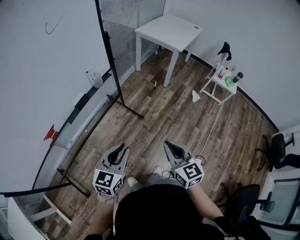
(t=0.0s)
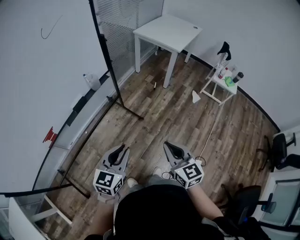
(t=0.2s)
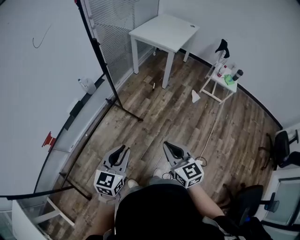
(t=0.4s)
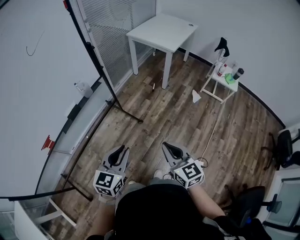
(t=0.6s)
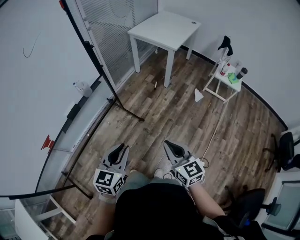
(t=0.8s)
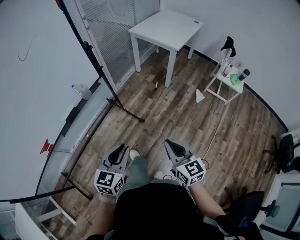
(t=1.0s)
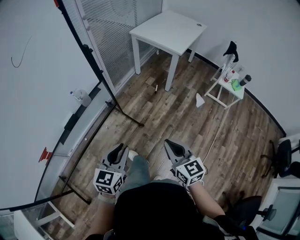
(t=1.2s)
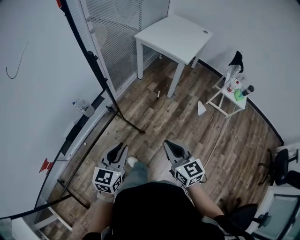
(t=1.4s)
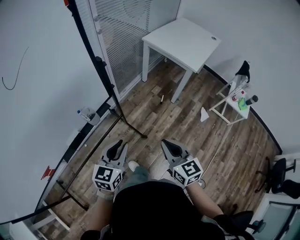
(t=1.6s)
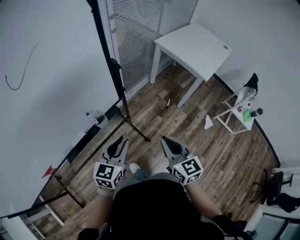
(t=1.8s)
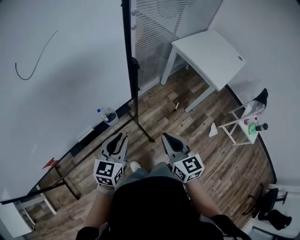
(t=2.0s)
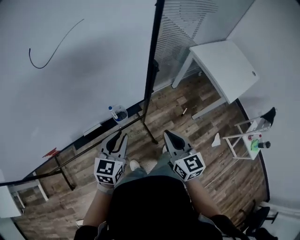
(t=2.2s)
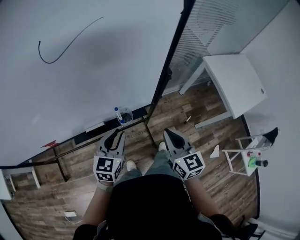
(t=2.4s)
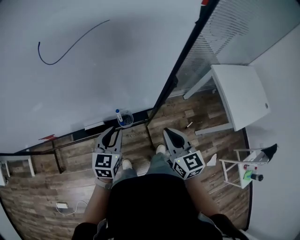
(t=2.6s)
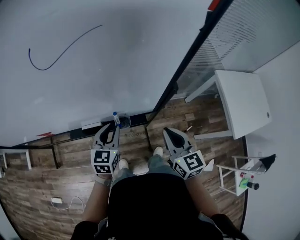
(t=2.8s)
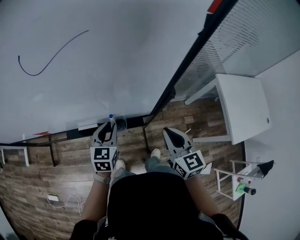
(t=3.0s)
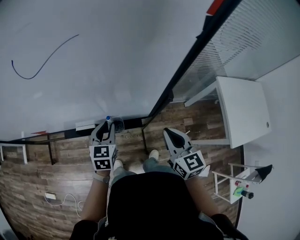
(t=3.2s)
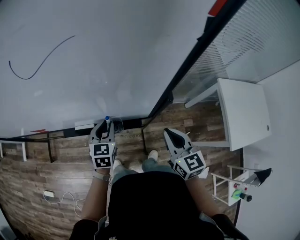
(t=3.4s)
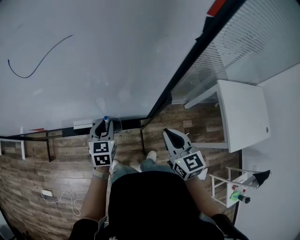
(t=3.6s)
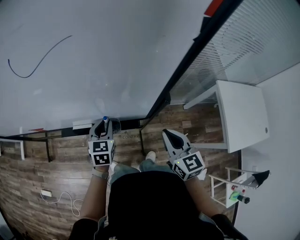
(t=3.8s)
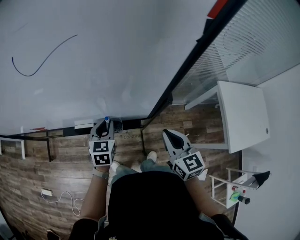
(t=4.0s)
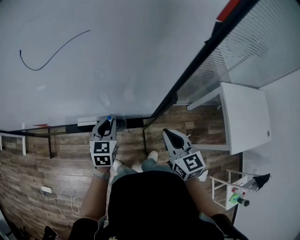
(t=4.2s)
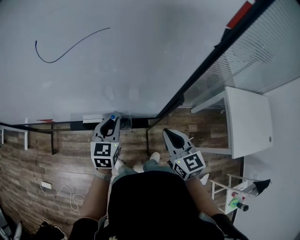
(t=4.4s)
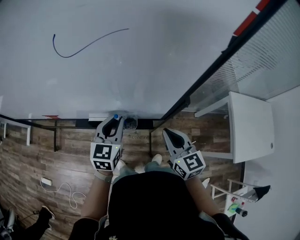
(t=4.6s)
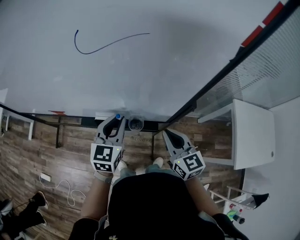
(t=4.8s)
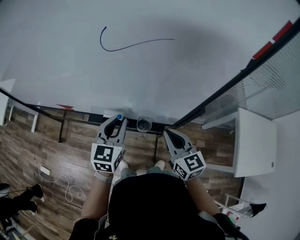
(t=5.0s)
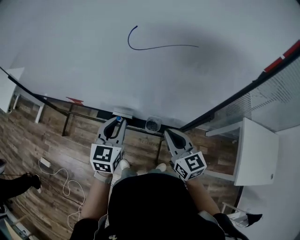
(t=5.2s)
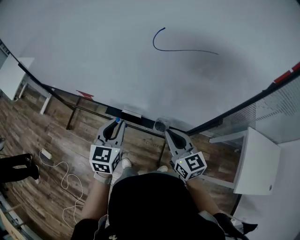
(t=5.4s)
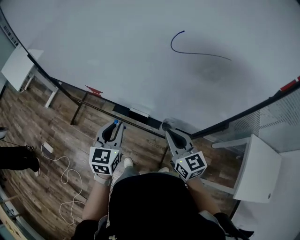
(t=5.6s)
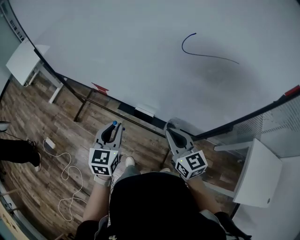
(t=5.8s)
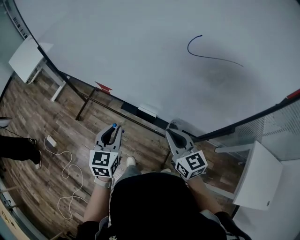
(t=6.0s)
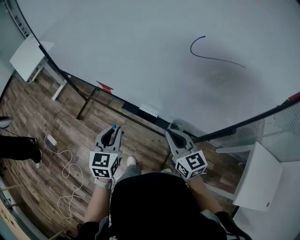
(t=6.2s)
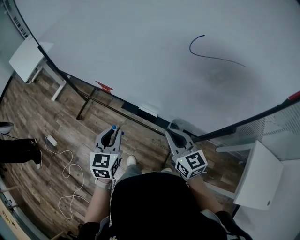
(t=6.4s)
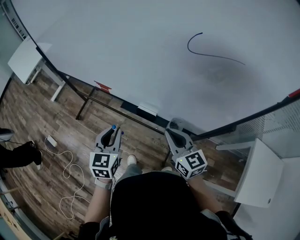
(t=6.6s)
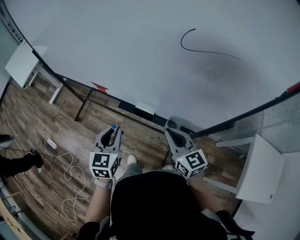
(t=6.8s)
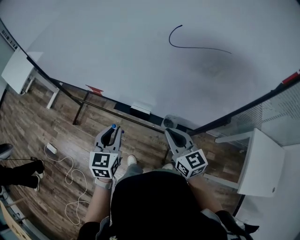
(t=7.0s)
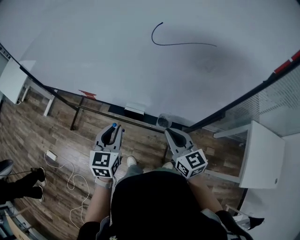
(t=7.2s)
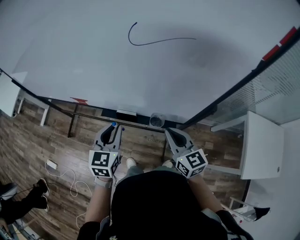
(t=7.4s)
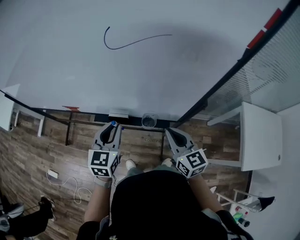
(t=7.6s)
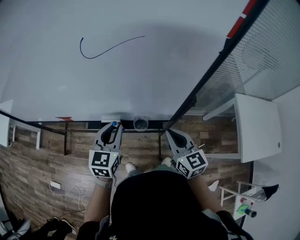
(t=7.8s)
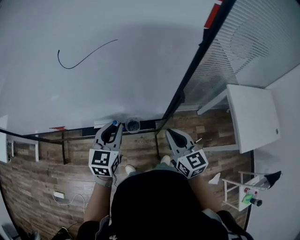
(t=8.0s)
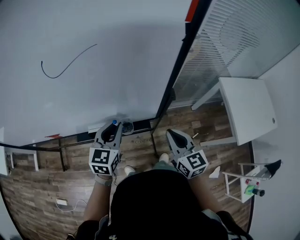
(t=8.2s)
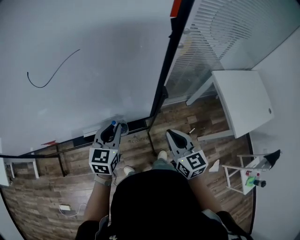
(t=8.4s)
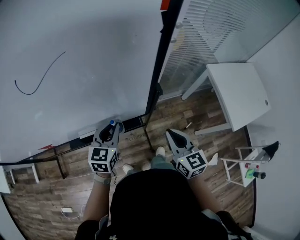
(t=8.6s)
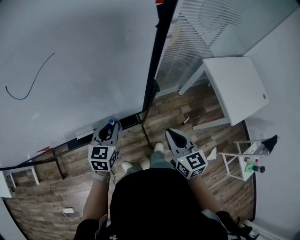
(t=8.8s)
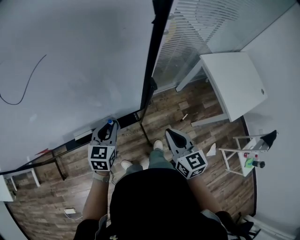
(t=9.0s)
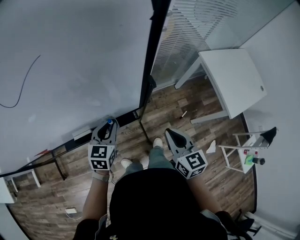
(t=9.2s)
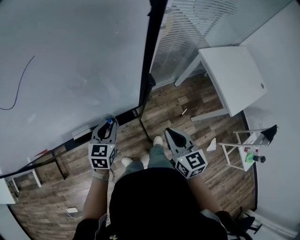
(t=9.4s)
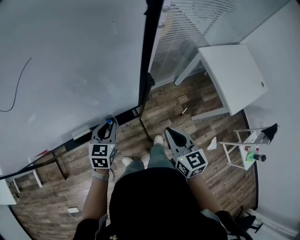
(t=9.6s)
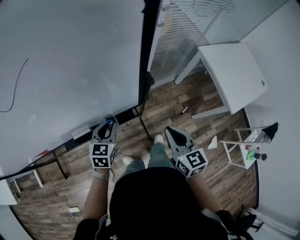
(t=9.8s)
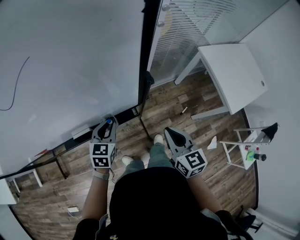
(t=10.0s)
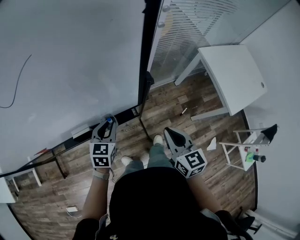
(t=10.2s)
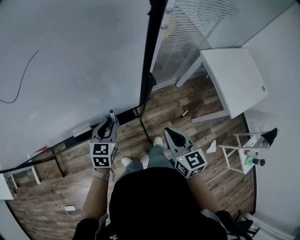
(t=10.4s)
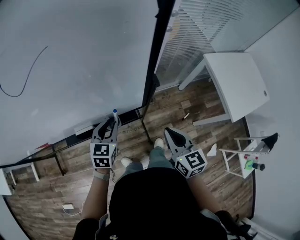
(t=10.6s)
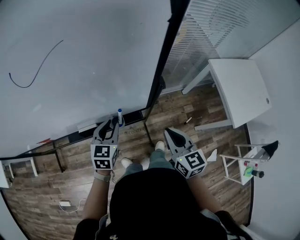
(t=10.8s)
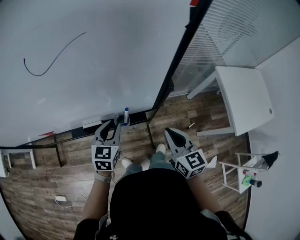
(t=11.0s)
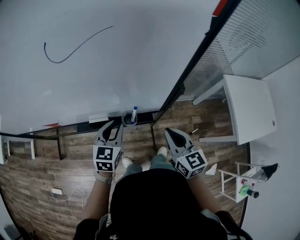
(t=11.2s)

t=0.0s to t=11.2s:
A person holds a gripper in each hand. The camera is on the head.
t=0.0s to t=1.6s: Both grippers travel together forward, some 30 cm.
t=1.6s to t=3.2s: The right gripper ends up approximately 30 cm from where it was, and turns by approximately 40 degrees. The left gripper changes place by about 25 cm, and changes its angle by about 60 degrees.
t=3.2s to t=4.8s: The right gripper is displaced to the left by approximately 10 cm, while the left gripper shifts roughly 10 cm upward.
t=4.8s to t=6.4s: The right gripper shifts by approximately 15 cm, and turns by some 20 degrees; the left gripper ends up approximately 25 cm from where it was, and rotates approximately 30 degrees.
t=6.4s to t=8.0s: The left gripper shifts by some 25 cm, and changes its angle by some 30 degrees. The right gripper changes place by some 20 cm, and turns by some 30 degrees.
t=8.0s to t=9.6s: The left gripper heads downward and to the right, covering approximately 15 cm, and changes its angle by roughly 20 degrees; the right gripper shifts about 10 cm to the right, and changes its angle by about 20 degrees.
t=9.6s to t=11.2s: The left gripper shifts about 10 cm to the left and upward. Meanwhile the right gripper is displaced to the left by roughly 10 cm.

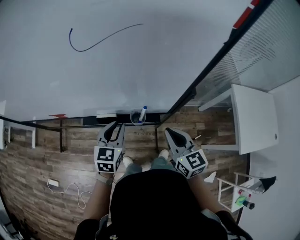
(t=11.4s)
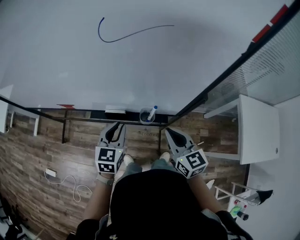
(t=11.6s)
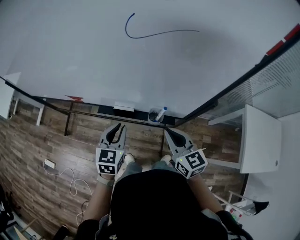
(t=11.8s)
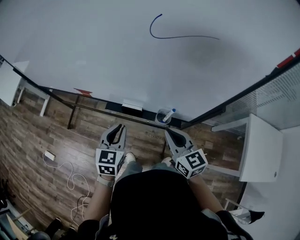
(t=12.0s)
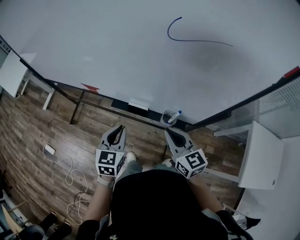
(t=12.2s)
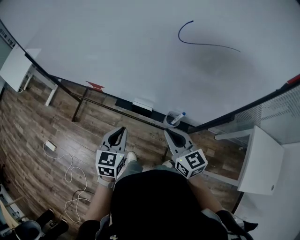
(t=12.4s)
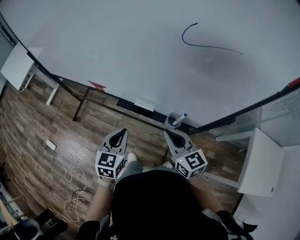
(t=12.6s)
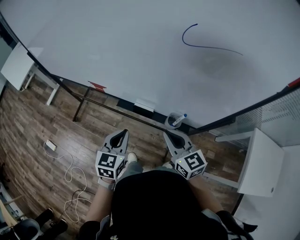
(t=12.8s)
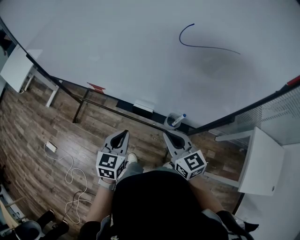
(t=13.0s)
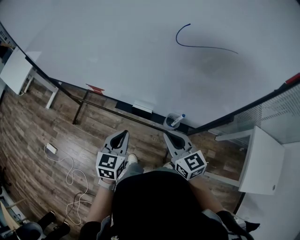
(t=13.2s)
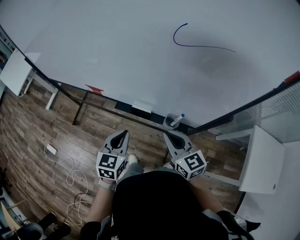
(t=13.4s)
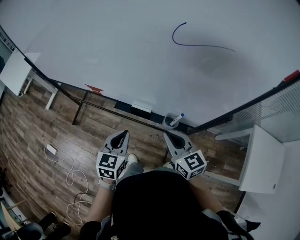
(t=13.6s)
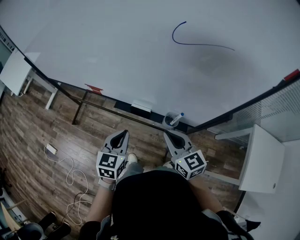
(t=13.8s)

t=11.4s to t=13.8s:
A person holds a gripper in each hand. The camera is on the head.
t=11.4s to t=12.6s: Both grippers move to the left, roughly 15 cm. The right gripper swivels some 30 degrees.
t=12.6s to t=13.8s: The grippers stay close to where they were, moving slightly.

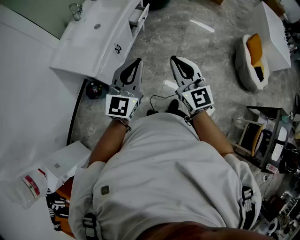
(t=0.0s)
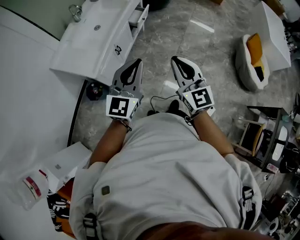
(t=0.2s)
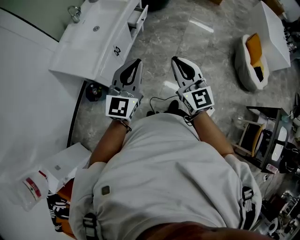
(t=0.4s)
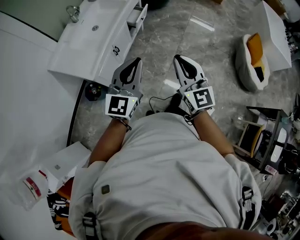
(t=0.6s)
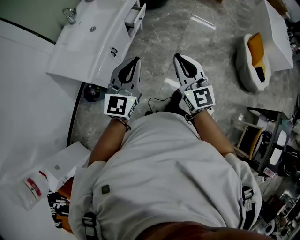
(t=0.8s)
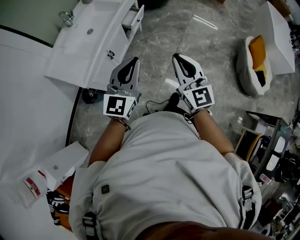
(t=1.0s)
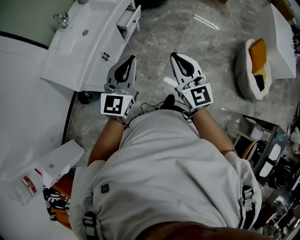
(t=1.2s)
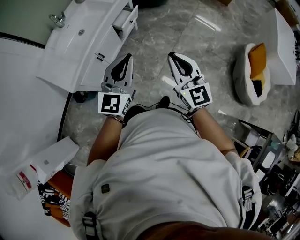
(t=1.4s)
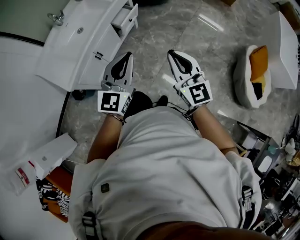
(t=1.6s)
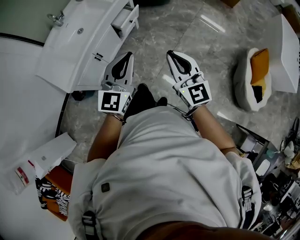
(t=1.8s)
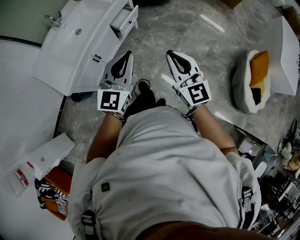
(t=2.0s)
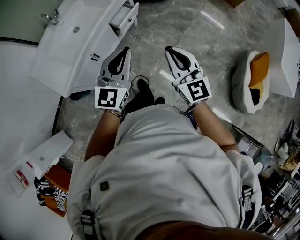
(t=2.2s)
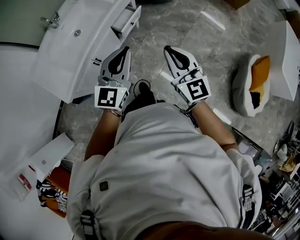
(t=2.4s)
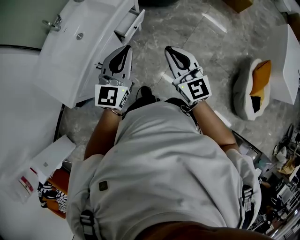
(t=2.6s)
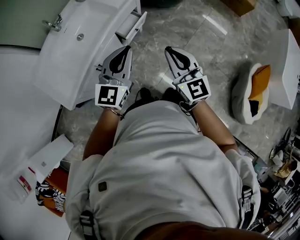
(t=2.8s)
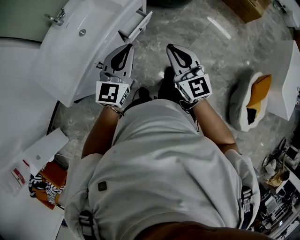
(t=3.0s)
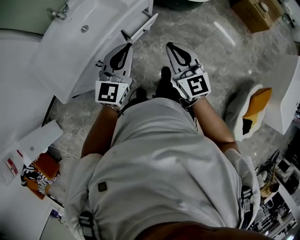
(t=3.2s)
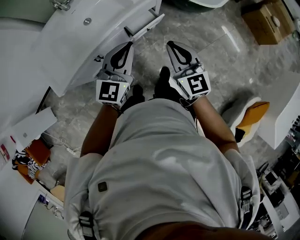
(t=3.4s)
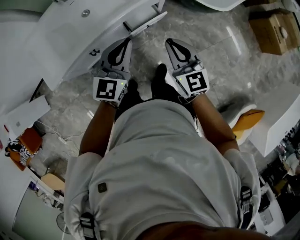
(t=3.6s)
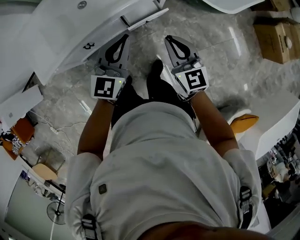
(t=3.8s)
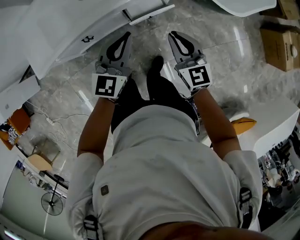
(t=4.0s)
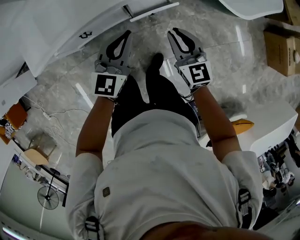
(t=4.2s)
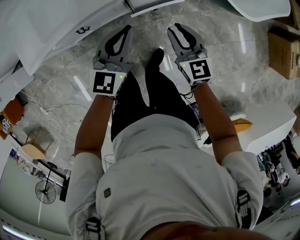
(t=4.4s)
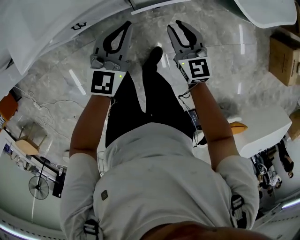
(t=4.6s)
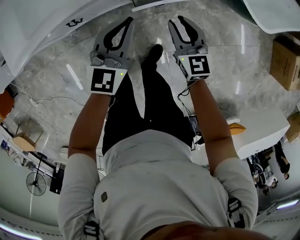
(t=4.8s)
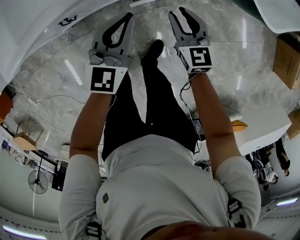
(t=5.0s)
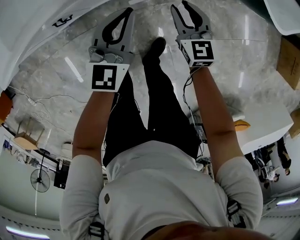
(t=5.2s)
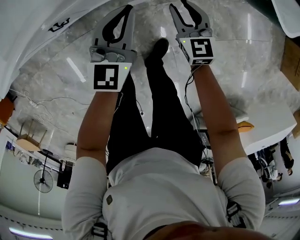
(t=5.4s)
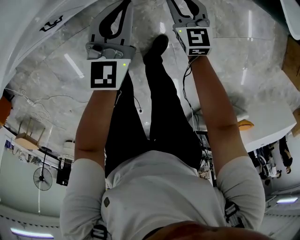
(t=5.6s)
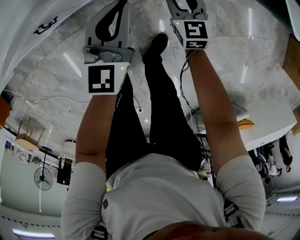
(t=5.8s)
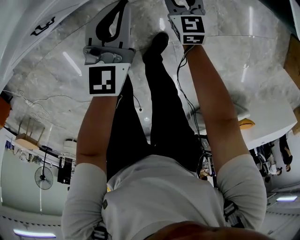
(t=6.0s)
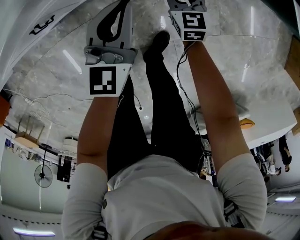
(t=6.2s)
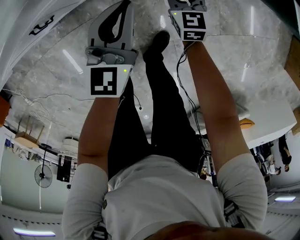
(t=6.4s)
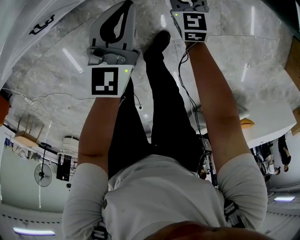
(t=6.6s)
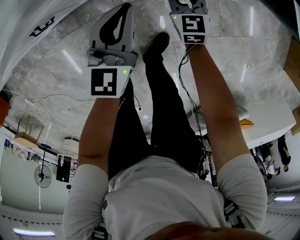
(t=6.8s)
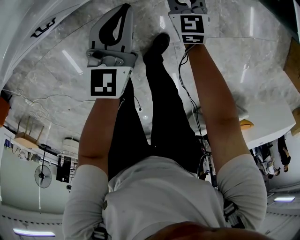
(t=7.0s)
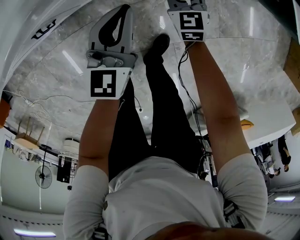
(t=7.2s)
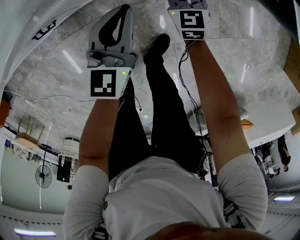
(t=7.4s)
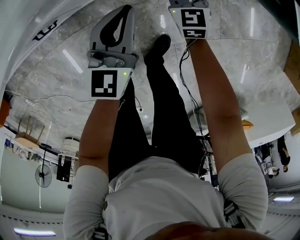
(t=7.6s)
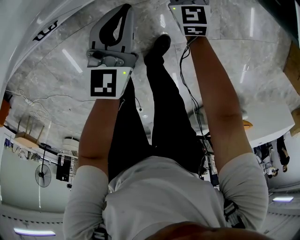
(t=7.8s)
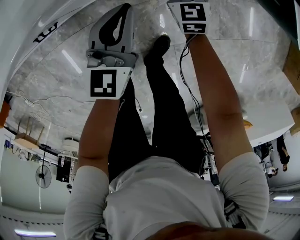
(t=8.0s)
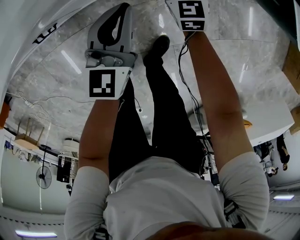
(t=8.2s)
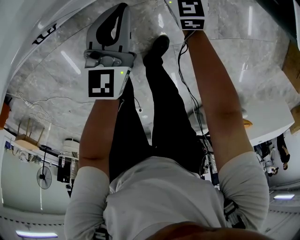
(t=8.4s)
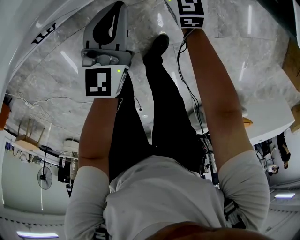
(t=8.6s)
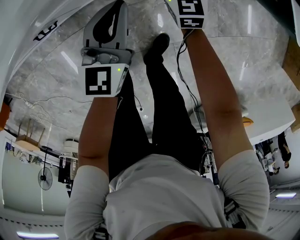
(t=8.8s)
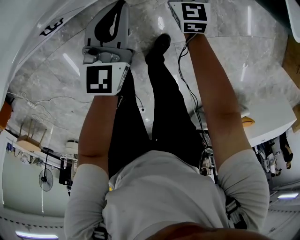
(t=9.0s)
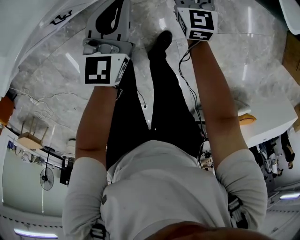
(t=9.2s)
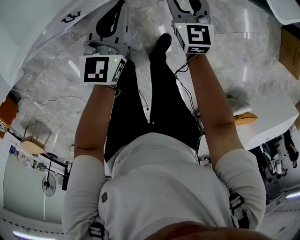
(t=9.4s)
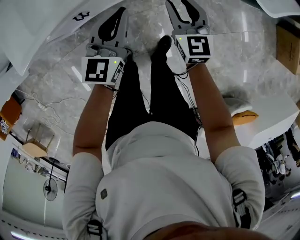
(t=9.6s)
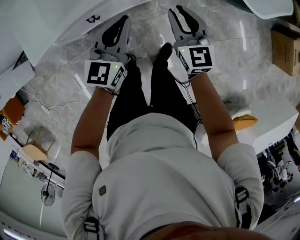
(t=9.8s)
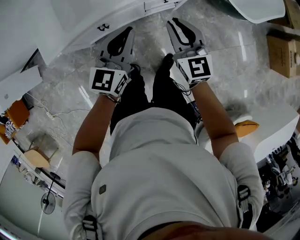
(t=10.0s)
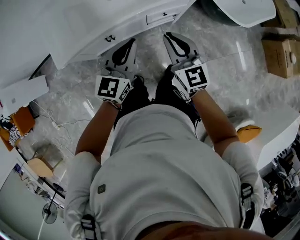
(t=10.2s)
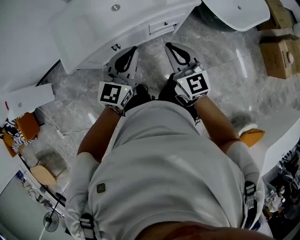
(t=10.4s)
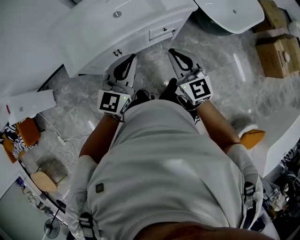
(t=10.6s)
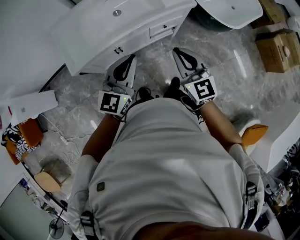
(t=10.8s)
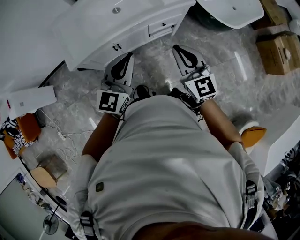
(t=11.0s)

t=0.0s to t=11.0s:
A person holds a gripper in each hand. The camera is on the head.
t=0.0s to t=1.6s: Both grippers move forward and to the right, approximately 30 cm.
t=1.6s to t=3.2s: The two grippers go some 30 cm forward.
t=3.2s to t=4.8s: Both grippers travel together downward and forward, some 35 cm. The right gripper changes its angle by about 30 degrees, and opens its fingers. The left gripper swivels roughly 30 degrees.
t=4.8s to t=6.2s: The two grippers go roughly 25 cm downward.
t=6.2s to t=7.8s: The right gripper goes approximately 5 cm forward.
t=7.8s to t=9.4s: The left gripper is displaced upward by approximately 15 cm. The right gripper heads upward and backward, covering some 20 cm.
t=9.4s to t=11.0s: Both grippers move upward and backward, roughly 50 cm. The right gripper closes up.
